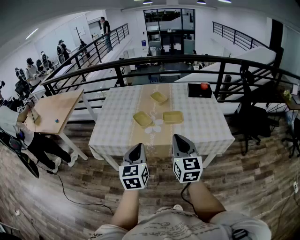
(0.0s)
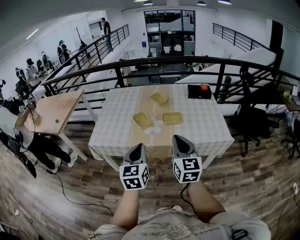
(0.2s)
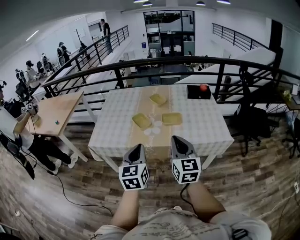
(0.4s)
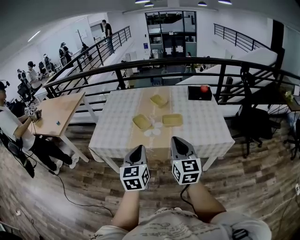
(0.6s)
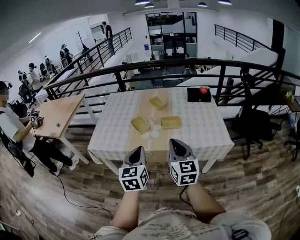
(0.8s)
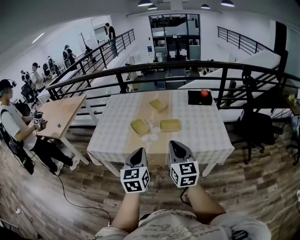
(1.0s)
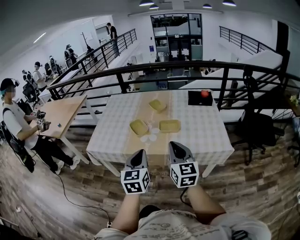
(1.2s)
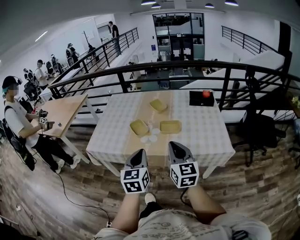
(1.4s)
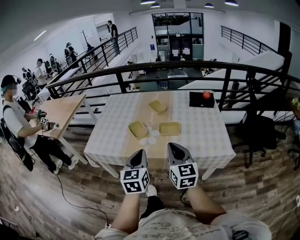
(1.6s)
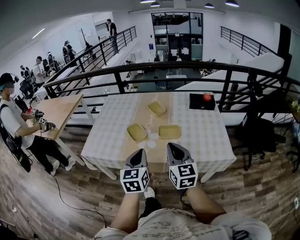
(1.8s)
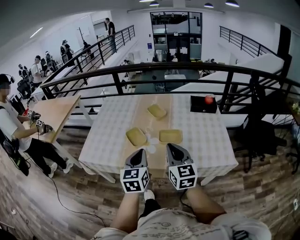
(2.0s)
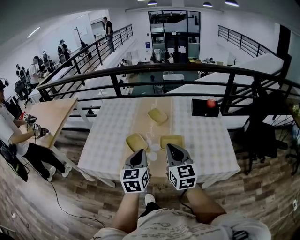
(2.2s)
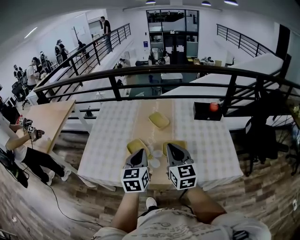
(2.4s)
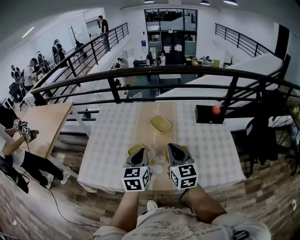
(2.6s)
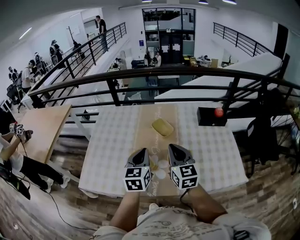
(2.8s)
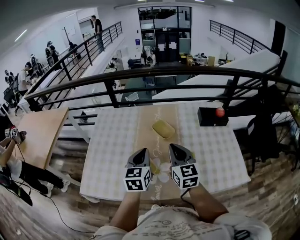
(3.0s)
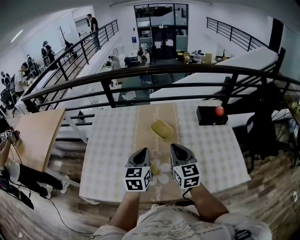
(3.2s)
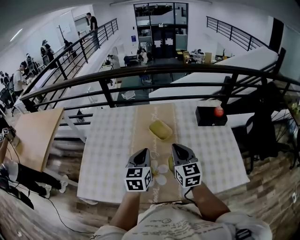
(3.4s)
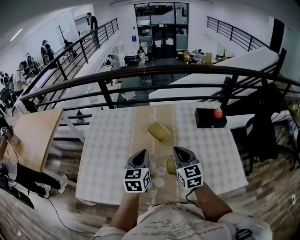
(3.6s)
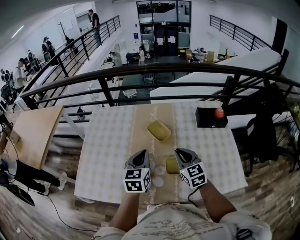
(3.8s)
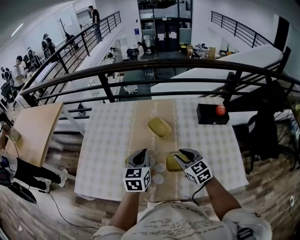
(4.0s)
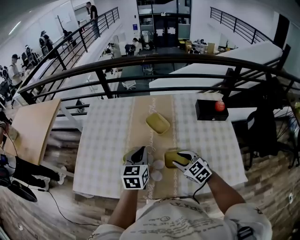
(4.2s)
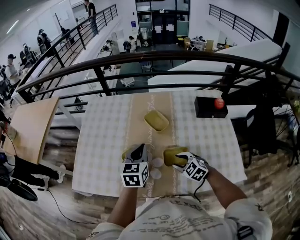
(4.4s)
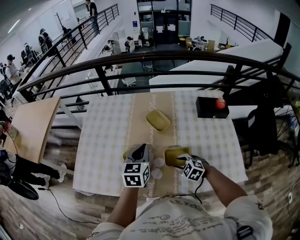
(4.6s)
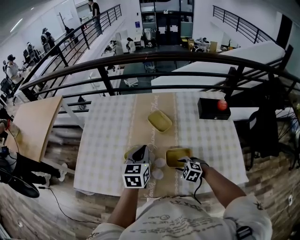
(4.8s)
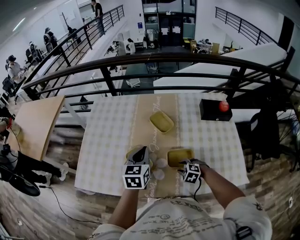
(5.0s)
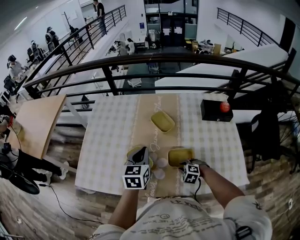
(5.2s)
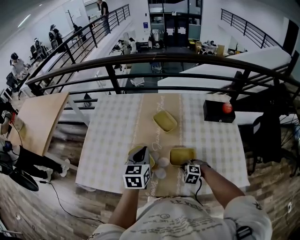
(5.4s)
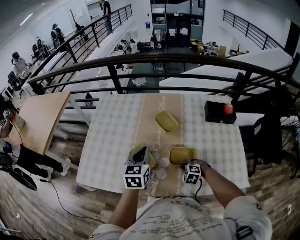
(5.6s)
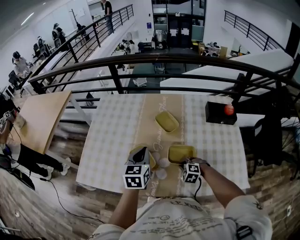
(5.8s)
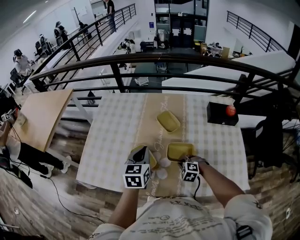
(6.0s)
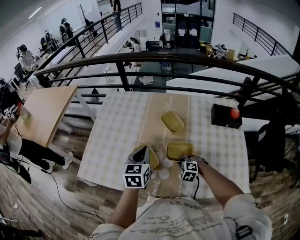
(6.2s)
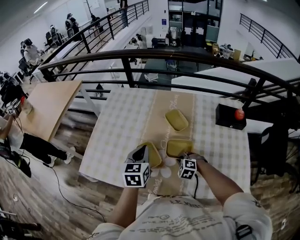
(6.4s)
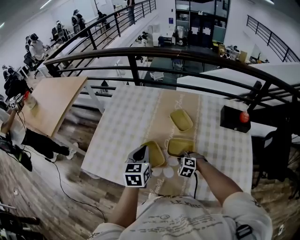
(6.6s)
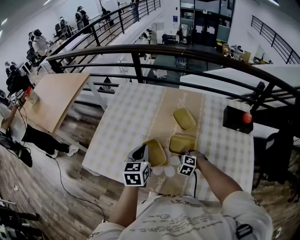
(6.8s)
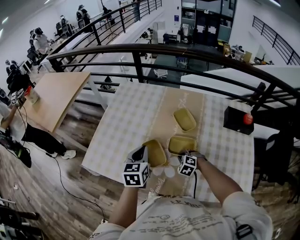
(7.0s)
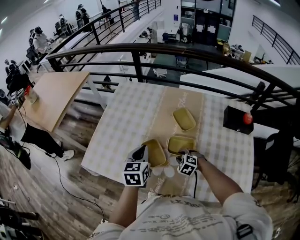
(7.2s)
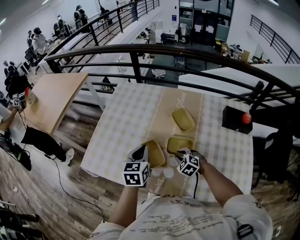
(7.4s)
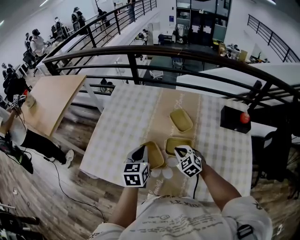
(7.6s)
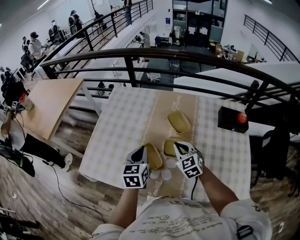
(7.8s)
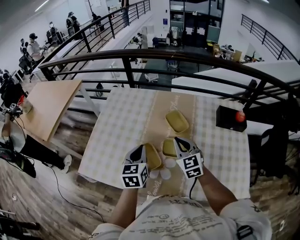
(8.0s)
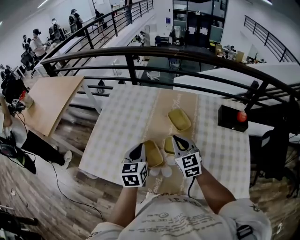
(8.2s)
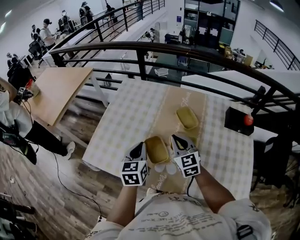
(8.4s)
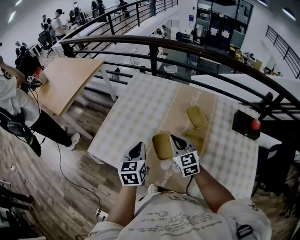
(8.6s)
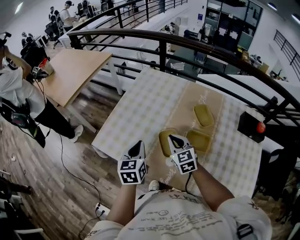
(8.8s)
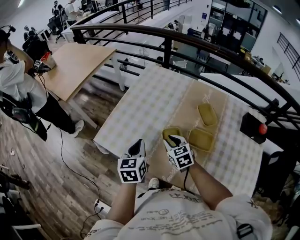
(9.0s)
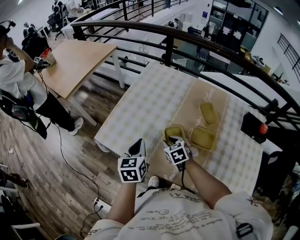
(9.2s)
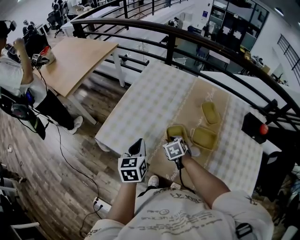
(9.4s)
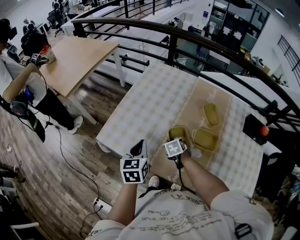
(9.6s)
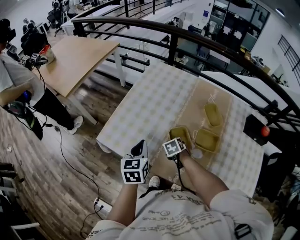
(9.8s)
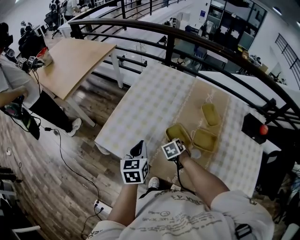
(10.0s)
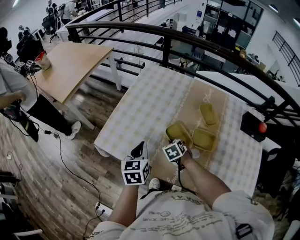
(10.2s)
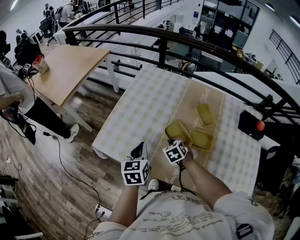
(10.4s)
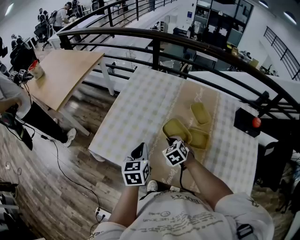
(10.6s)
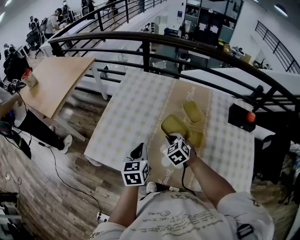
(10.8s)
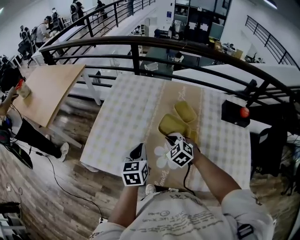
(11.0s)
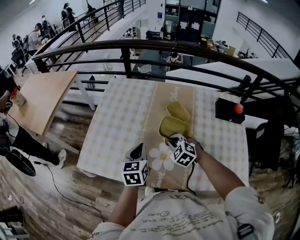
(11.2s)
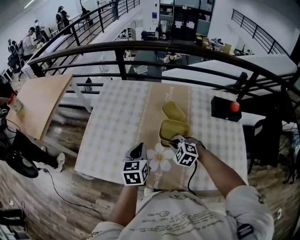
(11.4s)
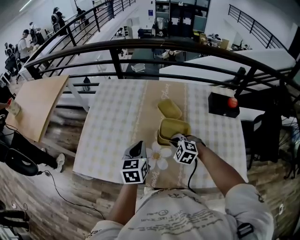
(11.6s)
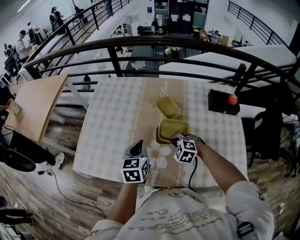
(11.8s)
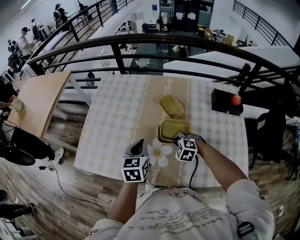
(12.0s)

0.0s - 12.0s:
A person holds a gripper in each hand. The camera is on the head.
0.0s - 1.6s: The right gripper goes approximately 10 cm forward and to the right. The left gripper is displaced to the right and forward by roughly 10 cm.
1.6s - 3.0s: The grippers both shift forward by roughly 35 cm.
3.0s - 4.4s: The left gripper changes place by some 10 cm. Meanwhile the right gripper shifts some 20 cm downward, points its fingers roughly 40 degrees further downward, and opens its fingers.
4.4s - 6.0s: The right gripper is displaced downward by approximately 10 cm, swivels roughly 30 degrees, and closes up.
6.0s - 7.6s: The right gripper is displaced forward, upward and to the left by roughly 15 cm, swivels roughly 30 degrees, and opens, then closes once more, while the left gripper shifts by some 5 cm.
7.6s - 9.0s: The two grippers go approximately 15 cm to the left.
9.0s - 10.4s: The right gripper moves downward, roughly 5 cm, and turns by some 20 degrees.
10.4s - 12.0s: Both grippers move to the right, some 20 cm. The right gripper turns by roughly 30 degrees.

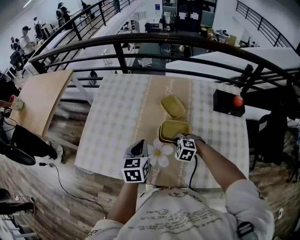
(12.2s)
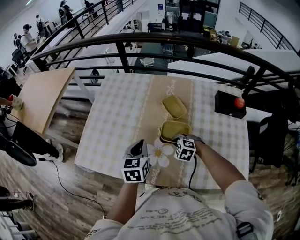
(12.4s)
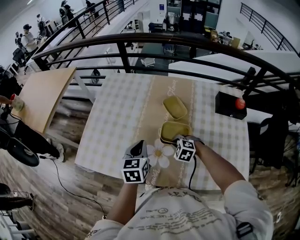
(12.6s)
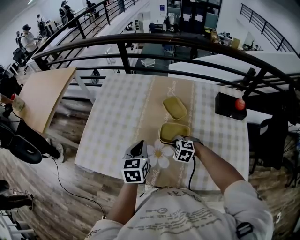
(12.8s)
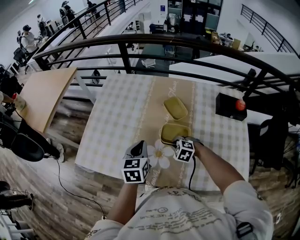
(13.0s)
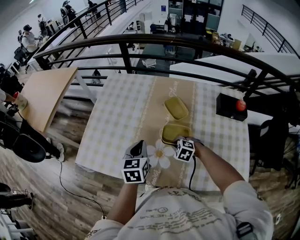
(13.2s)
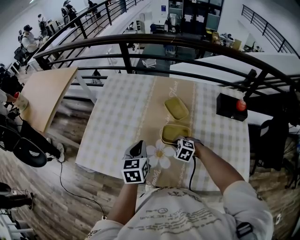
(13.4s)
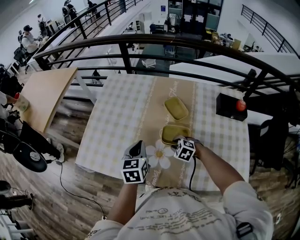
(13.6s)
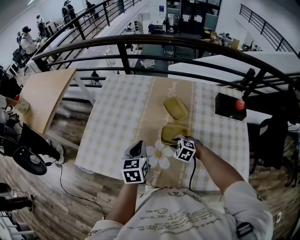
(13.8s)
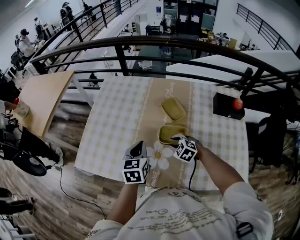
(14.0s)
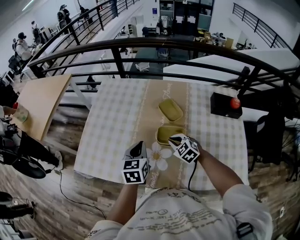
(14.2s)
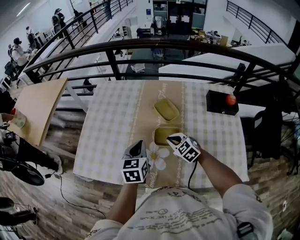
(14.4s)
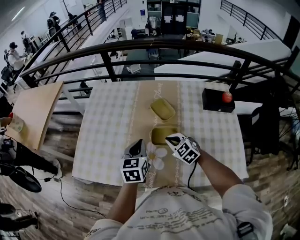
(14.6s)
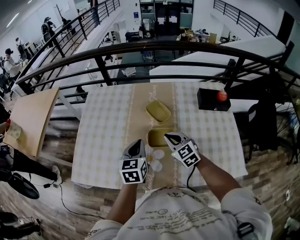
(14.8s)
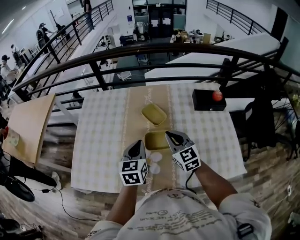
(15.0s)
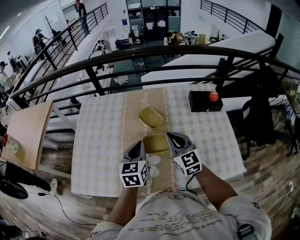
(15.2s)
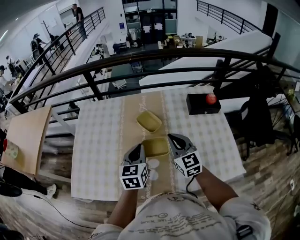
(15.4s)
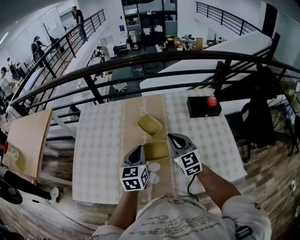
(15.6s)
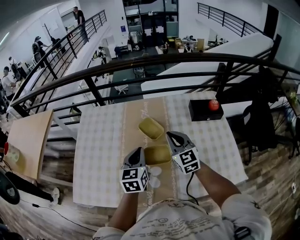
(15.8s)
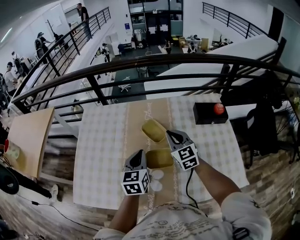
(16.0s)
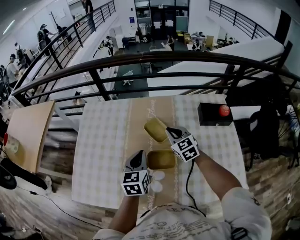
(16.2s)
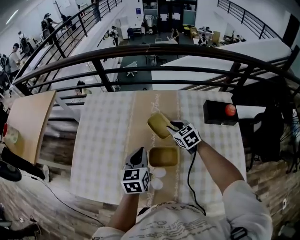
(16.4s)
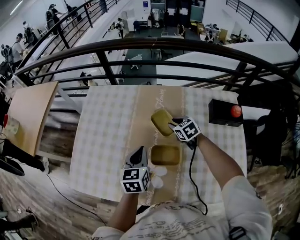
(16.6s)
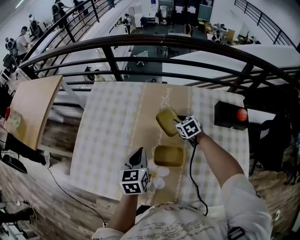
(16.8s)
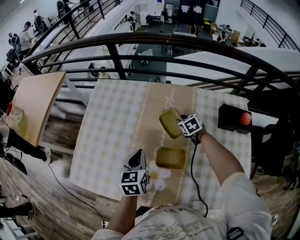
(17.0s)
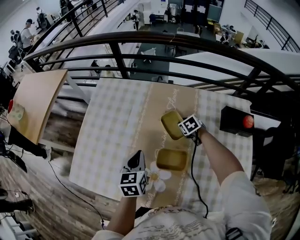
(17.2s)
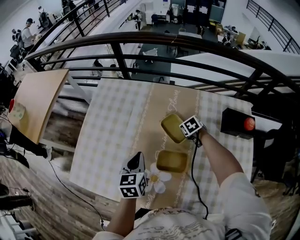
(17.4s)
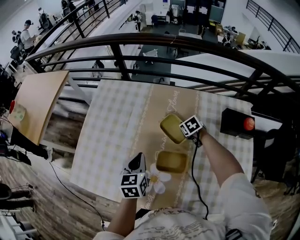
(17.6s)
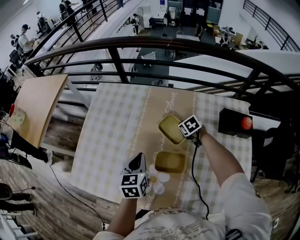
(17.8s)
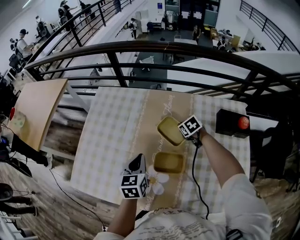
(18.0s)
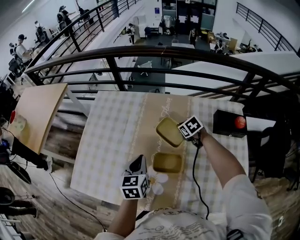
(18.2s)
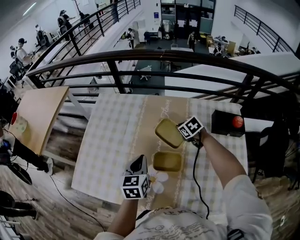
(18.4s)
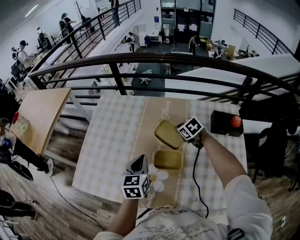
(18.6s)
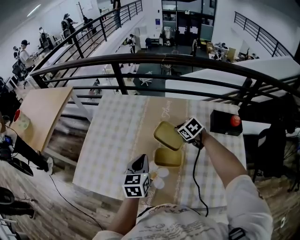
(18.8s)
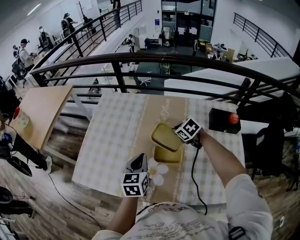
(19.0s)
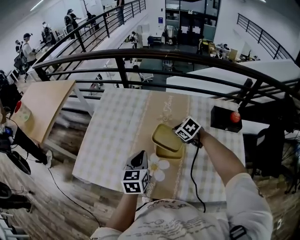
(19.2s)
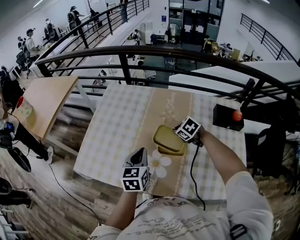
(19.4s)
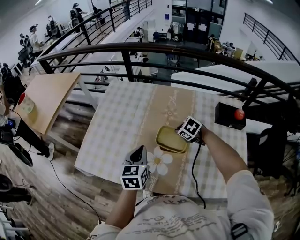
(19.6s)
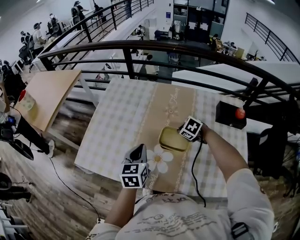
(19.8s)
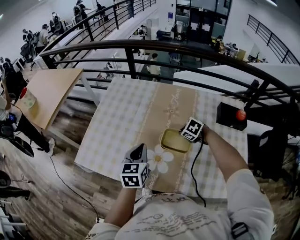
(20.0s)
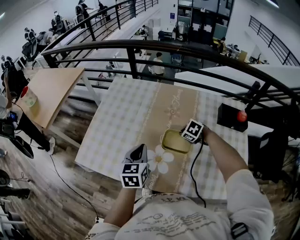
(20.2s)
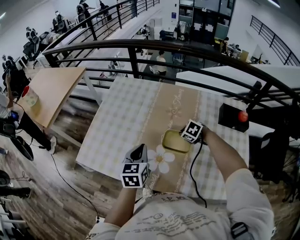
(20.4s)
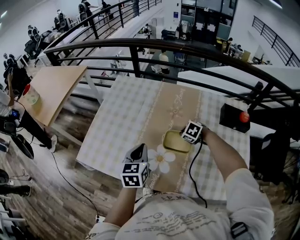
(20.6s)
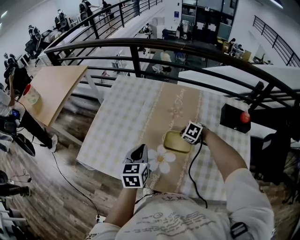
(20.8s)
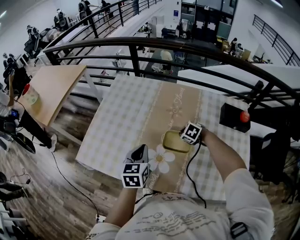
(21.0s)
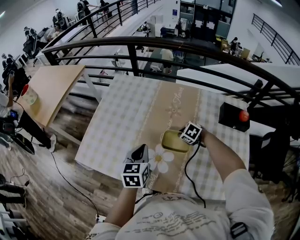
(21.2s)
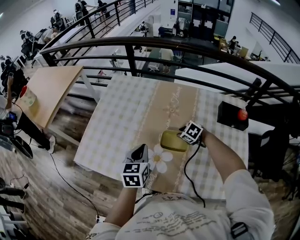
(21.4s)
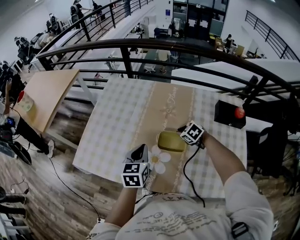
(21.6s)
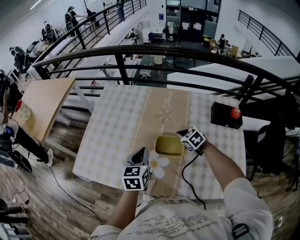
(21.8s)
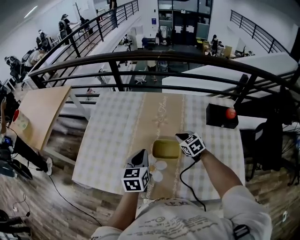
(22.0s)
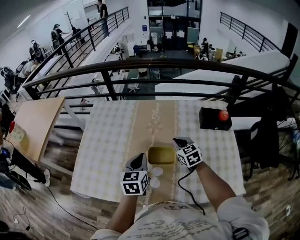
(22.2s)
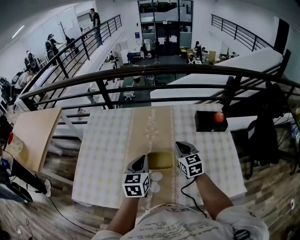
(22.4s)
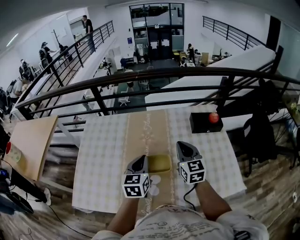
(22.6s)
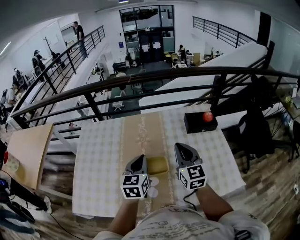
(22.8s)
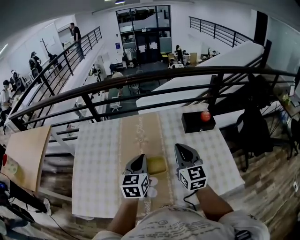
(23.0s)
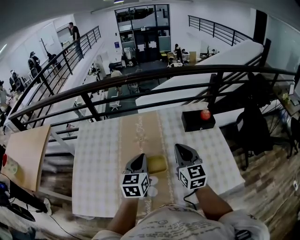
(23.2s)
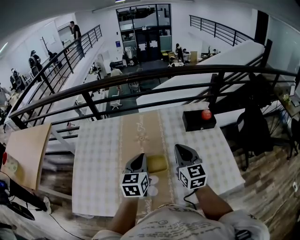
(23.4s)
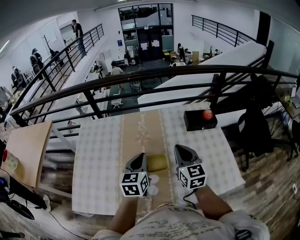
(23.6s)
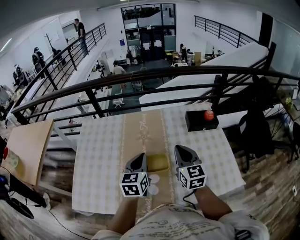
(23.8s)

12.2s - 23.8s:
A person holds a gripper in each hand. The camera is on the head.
12.2s - 13.6s: The right gripper opens its fingers.
13.6s - 15.0s: The right gripper goes approximately 20 cm upward, tips its fingers upward by about 50 degrees, and closes up. Meanwhile the left gripper travels to the right by approximately 10 cm.
15.0s - 16.6s: The right gripper is displaced forward and downward by some 25 cm, angles its fingers downward, by about 30 degrees, and opens its fingers. Meanwhile the left gripper travels forward by approximately 10 cm.
16.6s - 18.0s: The right gripper closes its fingers.
18.0s - 19.4s: The right gripper heads backward, to the left and upward, covering about 20 cm, and changes its angle by about 20 degrees. Meanwhile the left gripper shifts some 10 cm backward.
19.4s - 21.0s: The right gripper goes roughly 5 cm downward.
21.0s - 22.4s: The right gripper travels upward by roughly 15 cm, tips its fingers upward by about 50 degrees, and opens and closes again; the left gripper moves about 10 cm.
22.4s - 23.8s: The right gripper goes about 10 cm upward and backward.
